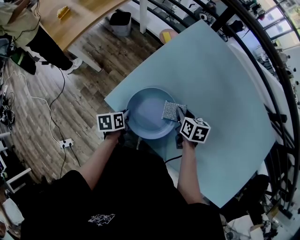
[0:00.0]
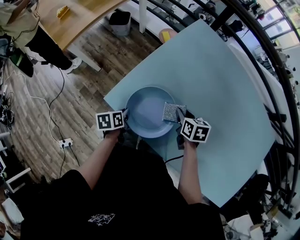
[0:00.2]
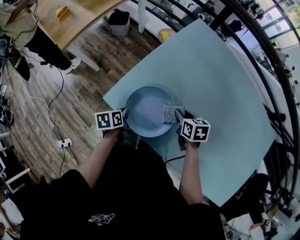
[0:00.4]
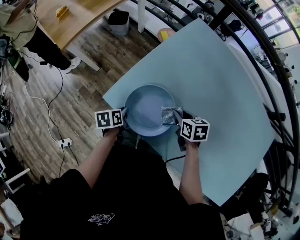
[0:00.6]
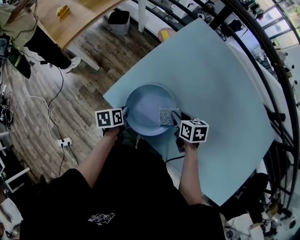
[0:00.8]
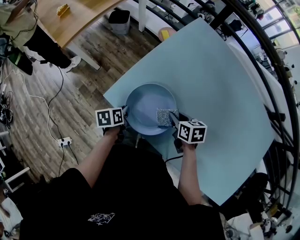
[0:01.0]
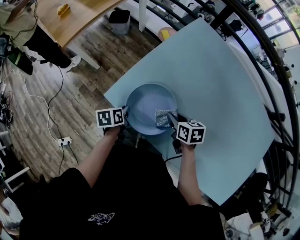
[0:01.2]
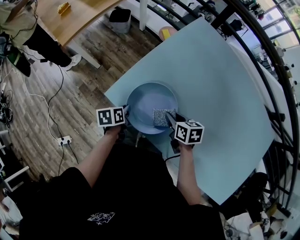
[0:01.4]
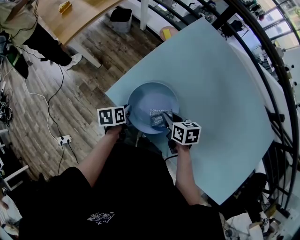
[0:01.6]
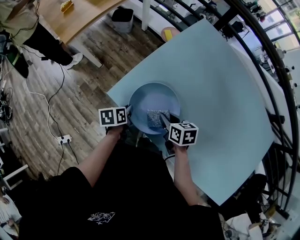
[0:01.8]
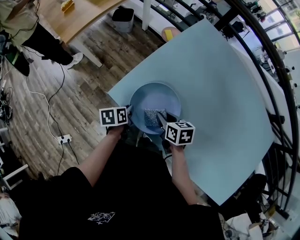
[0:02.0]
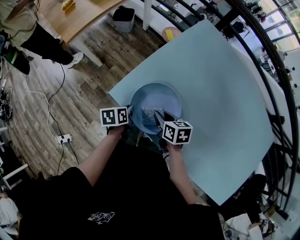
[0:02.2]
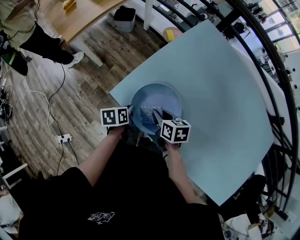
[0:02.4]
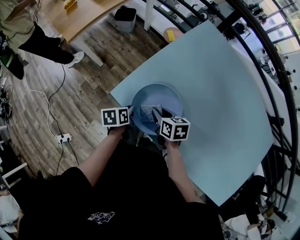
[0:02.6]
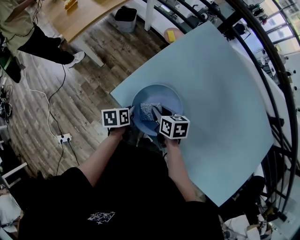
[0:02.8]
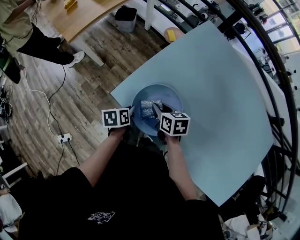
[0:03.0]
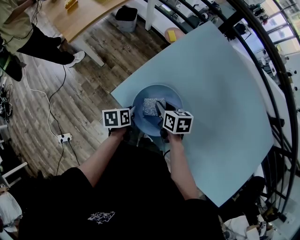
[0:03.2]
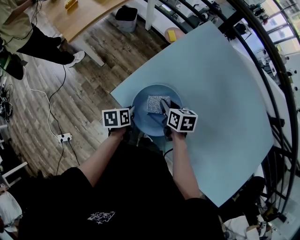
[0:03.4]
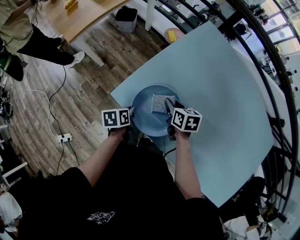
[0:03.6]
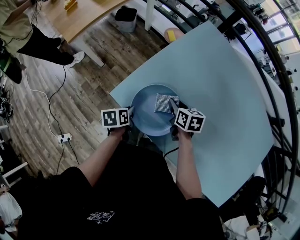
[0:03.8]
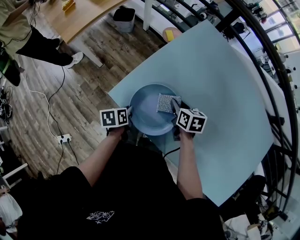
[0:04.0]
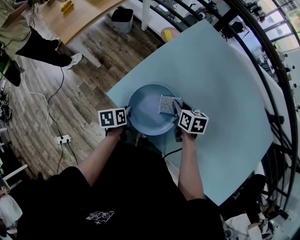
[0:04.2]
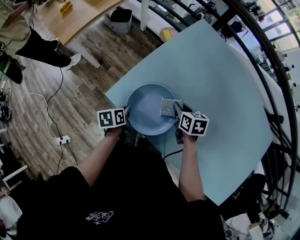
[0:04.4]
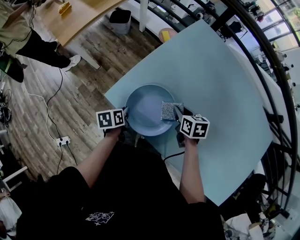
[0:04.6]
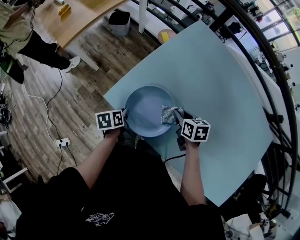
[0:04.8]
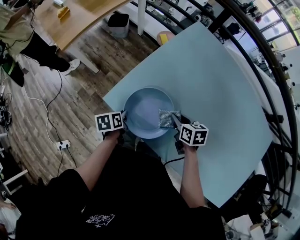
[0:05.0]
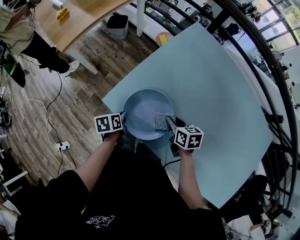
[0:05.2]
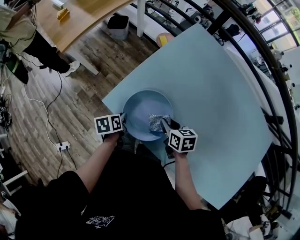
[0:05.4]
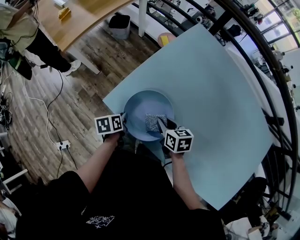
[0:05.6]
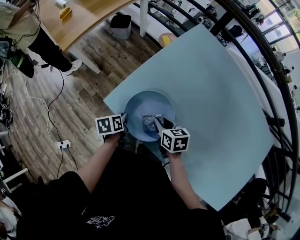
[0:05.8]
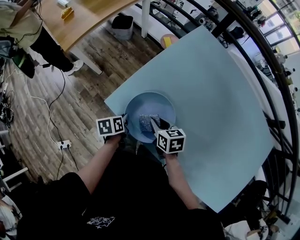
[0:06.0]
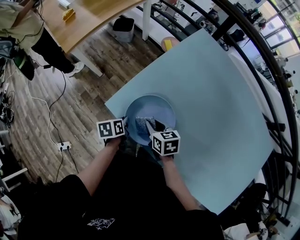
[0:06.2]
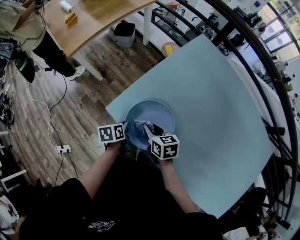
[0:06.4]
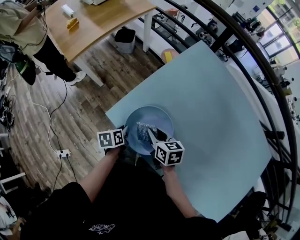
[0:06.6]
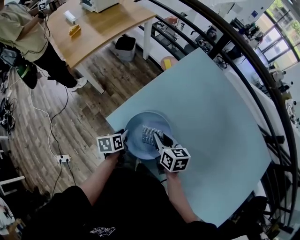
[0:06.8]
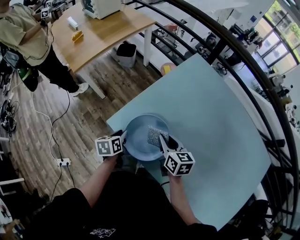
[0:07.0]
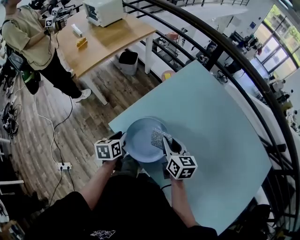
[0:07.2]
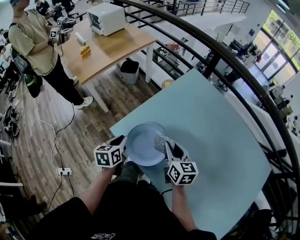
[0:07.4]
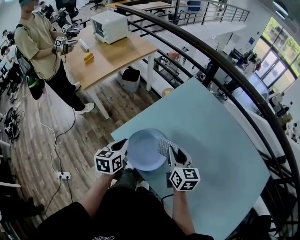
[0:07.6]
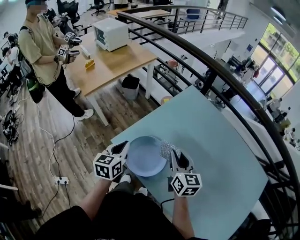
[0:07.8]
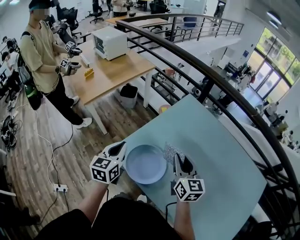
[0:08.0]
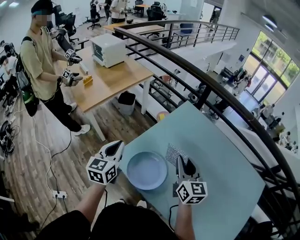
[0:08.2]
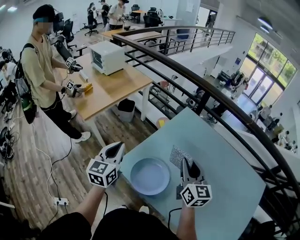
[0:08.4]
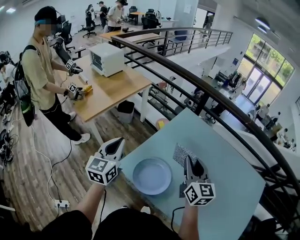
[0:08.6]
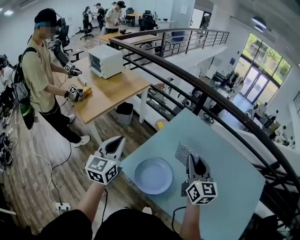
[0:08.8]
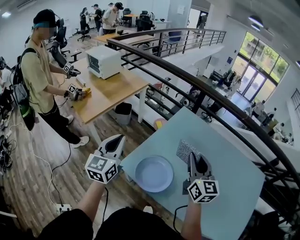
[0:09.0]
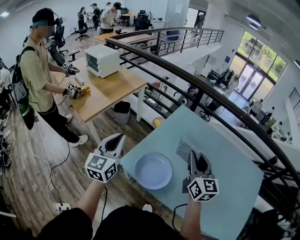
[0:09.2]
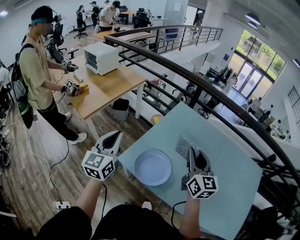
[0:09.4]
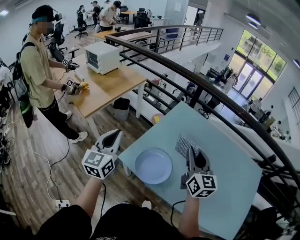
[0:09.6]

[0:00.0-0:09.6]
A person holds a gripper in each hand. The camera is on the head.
0.0 to 1.6 s: The right gripper heads to the left and backward, covering roughly 10 cm.
1.6 to 3.2 s: The right gripper travels to the left and forward by some 10 cm.
3.2 to 4.8 s: The right gripper travels to the right by roughly 15 cm.
4.8 to 6.4 s: The right gripper moves to the left, roughly 15 cm.
6.4 to 8.0 s: The right gripper is displaced upward and to the right by some 30 cm, and rotates roughly 40 degrees. The left gripper goes some 30 cm upward, and points its fingers about 40 degrees further upward.
8.0 to 9.6 s: The right gripper shifts some 15 cm upward and backward. The left gripper travels upward and to the left by roughly 15 cm, and rotates roughly 20 degrees.

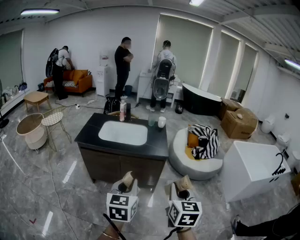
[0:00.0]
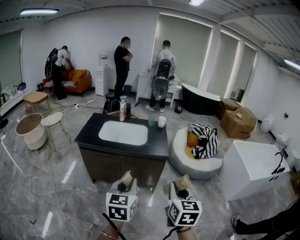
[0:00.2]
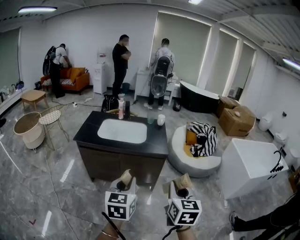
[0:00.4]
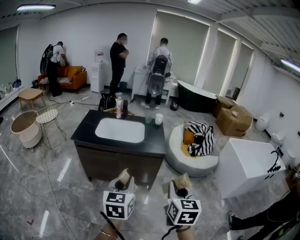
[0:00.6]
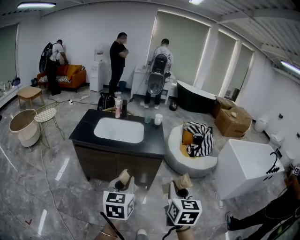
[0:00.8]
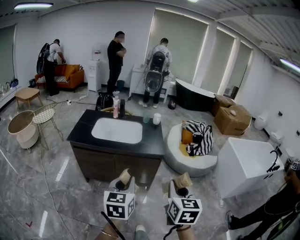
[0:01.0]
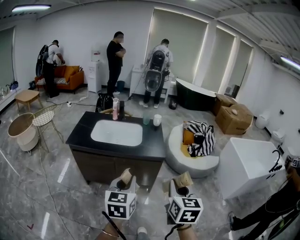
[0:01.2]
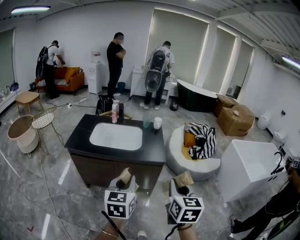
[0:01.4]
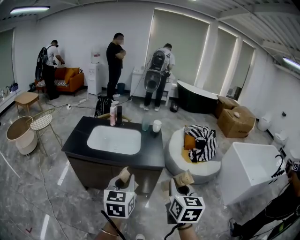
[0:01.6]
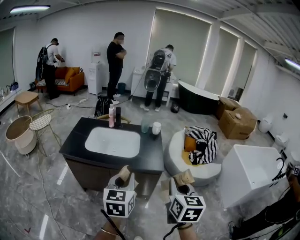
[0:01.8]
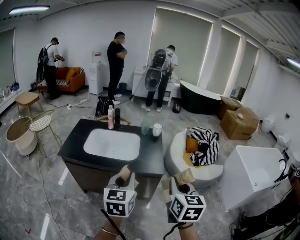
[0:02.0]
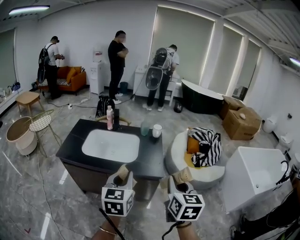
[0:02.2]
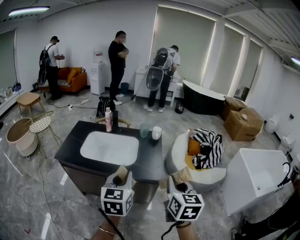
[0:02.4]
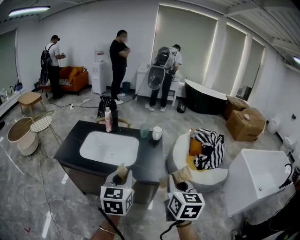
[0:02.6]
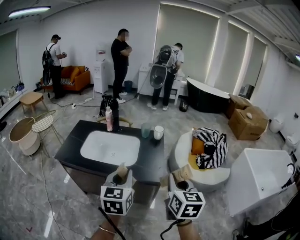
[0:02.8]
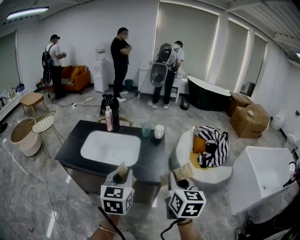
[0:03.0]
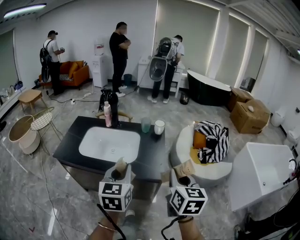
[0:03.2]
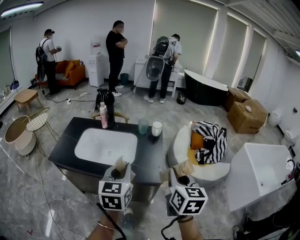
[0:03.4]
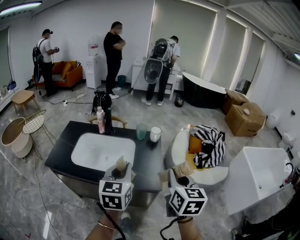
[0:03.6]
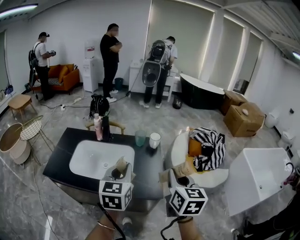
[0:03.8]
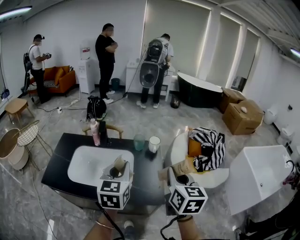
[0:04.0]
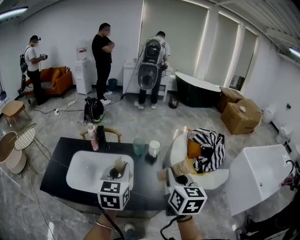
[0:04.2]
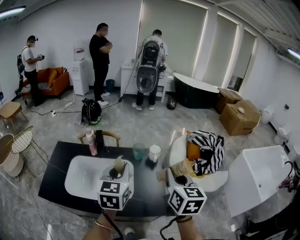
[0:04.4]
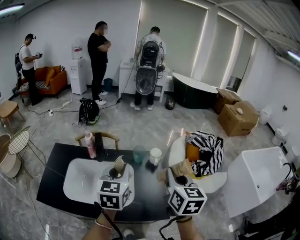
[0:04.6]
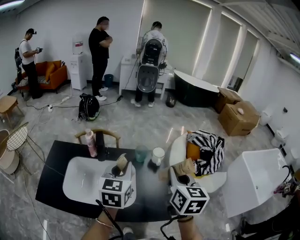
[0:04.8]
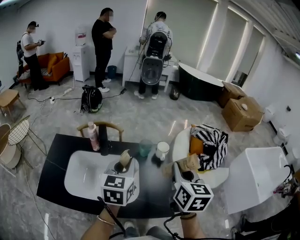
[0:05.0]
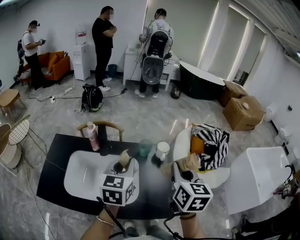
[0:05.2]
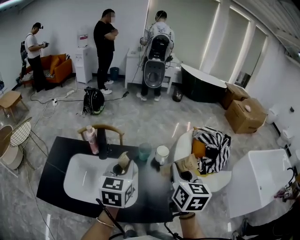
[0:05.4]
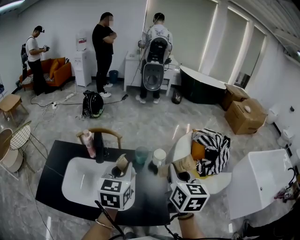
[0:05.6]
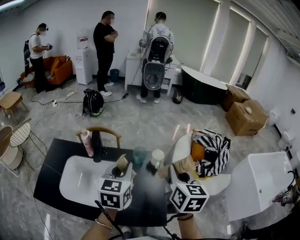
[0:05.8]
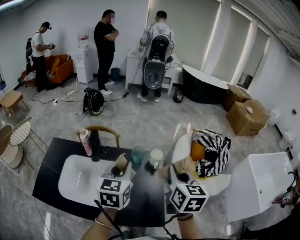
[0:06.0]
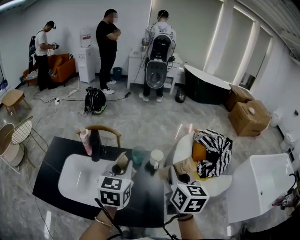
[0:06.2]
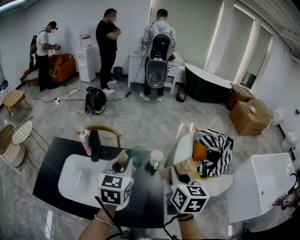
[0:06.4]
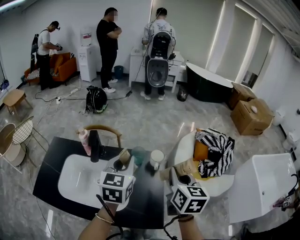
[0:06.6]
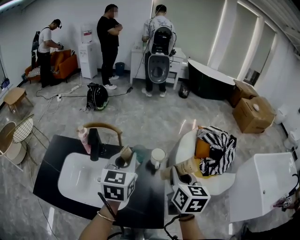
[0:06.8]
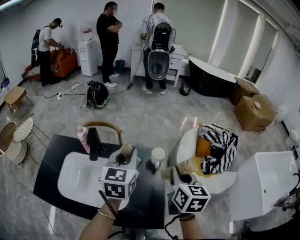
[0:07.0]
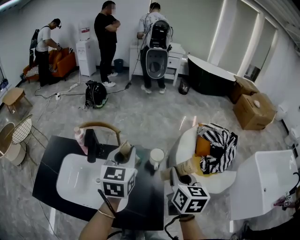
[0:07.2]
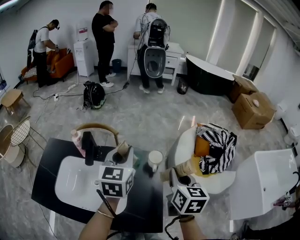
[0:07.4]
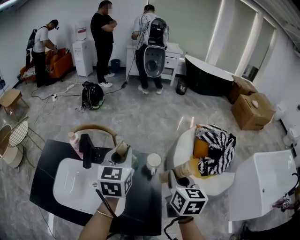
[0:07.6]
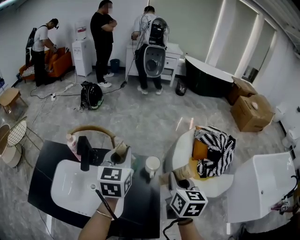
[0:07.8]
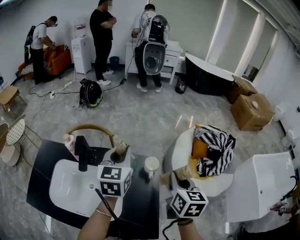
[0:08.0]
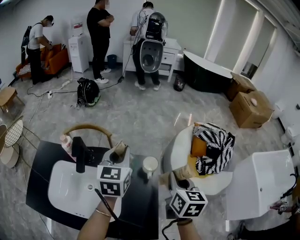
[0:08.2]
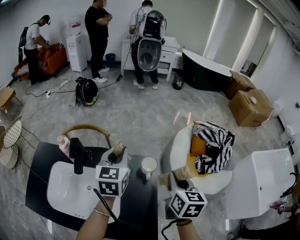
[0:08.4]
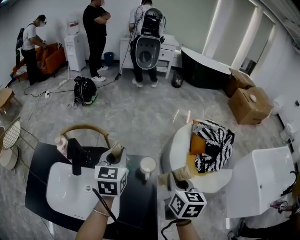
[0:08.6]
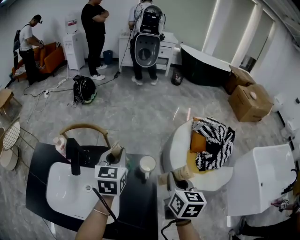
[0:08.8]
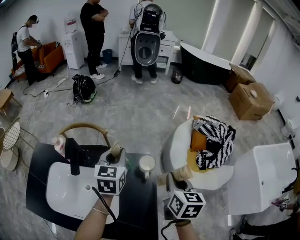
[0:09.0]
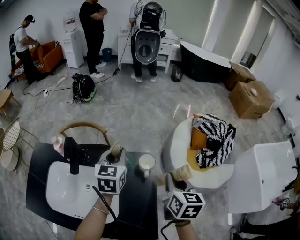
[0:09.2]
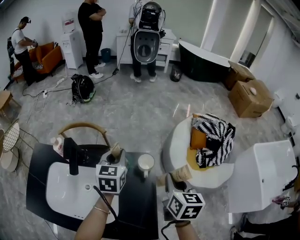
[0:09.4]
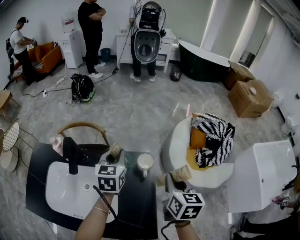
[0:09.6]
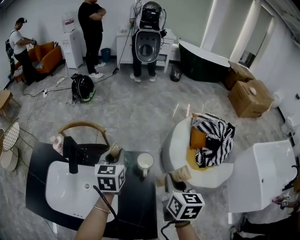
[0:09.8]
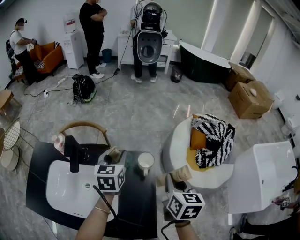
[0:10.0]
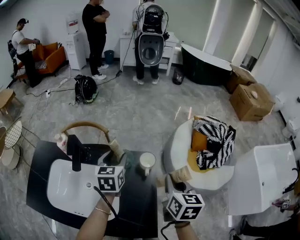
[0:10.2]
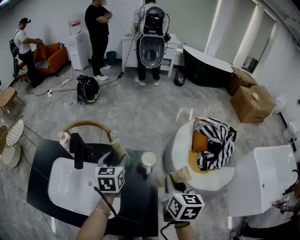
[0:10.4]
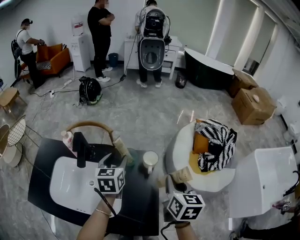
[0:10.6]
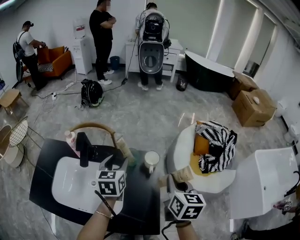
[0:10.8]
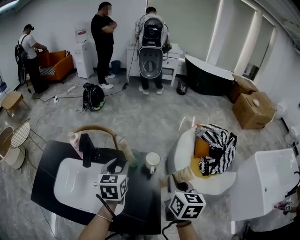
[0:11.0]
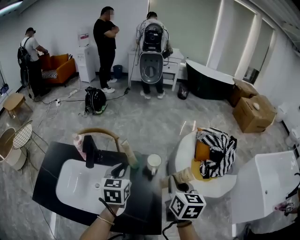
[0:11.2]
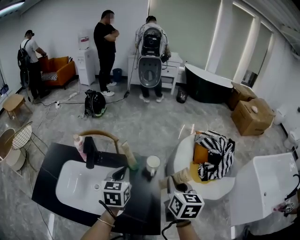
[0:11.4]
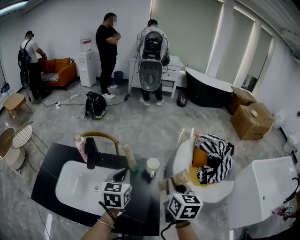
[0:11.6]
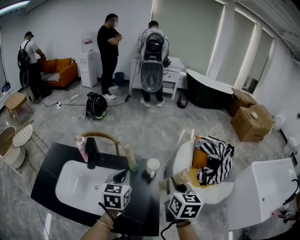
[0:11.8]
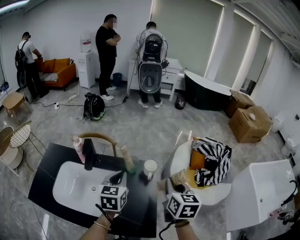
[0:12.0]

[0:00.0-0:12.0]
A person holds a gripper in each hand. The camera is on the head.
0.0 to 1.6 s: Both grippers travel together forward, about 15 cm.
1.6 to 3.0 s: The grippers both shift forward by approximately 15 cm.
3.0 to 4.4 s: Both grippers move forward, some 25 cm.
4.4 to 6.0 s: The two grippers go about 10 cm forward.
6.0 to 7.6 s: The right gripper heads forward and downward, covering some 10 cm; the left gripper travels forward by about 10 cm.
7.6 to 9.0 s: The right gripper changes place by some 5 cm. Meanwhile the left gripper heads downward and forward, covering approximately 10 cm.
9.0 to 10.4 s: The left gripper moves approximately 5 cm, and opens its fingers.
10.4 to 12.0 s: The right gripper shifts by about 5 cm. The left gripper goes approximately 10 cm backward and upward, and closes its fingers.

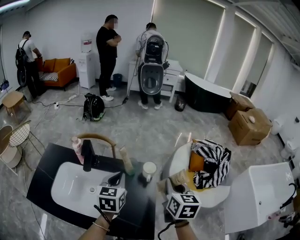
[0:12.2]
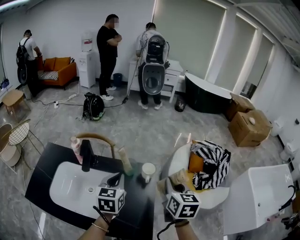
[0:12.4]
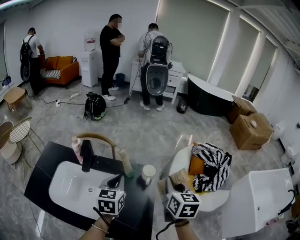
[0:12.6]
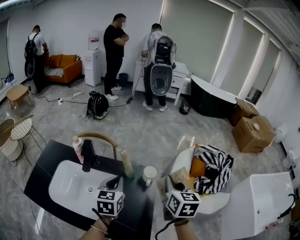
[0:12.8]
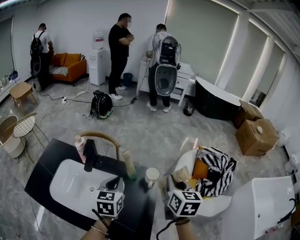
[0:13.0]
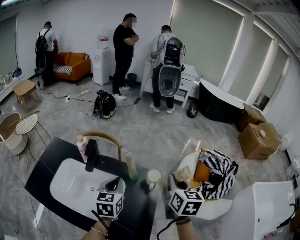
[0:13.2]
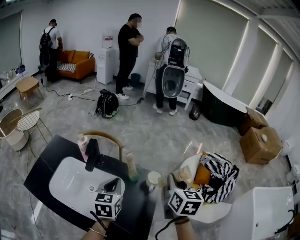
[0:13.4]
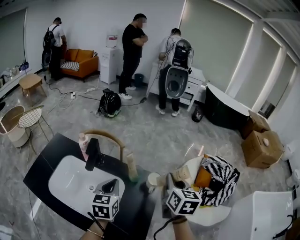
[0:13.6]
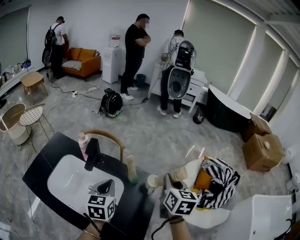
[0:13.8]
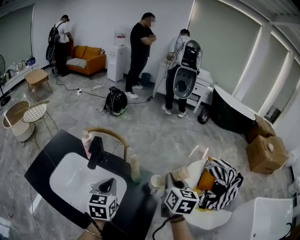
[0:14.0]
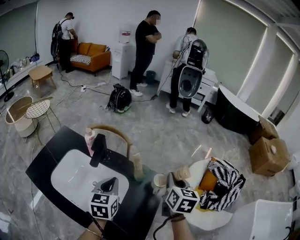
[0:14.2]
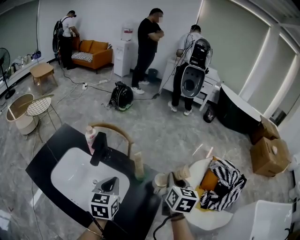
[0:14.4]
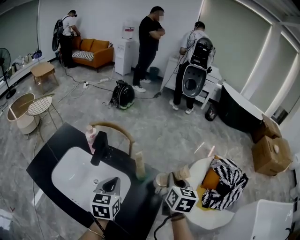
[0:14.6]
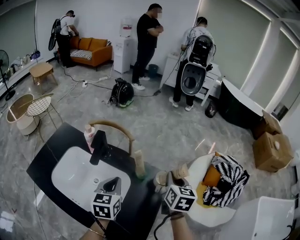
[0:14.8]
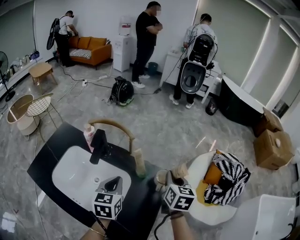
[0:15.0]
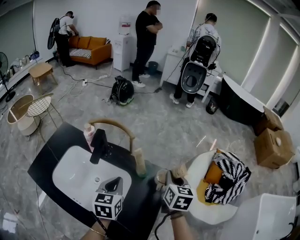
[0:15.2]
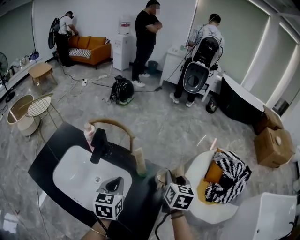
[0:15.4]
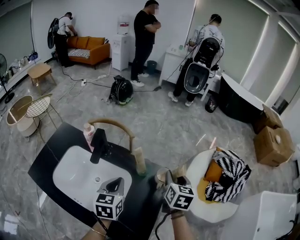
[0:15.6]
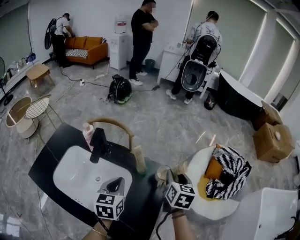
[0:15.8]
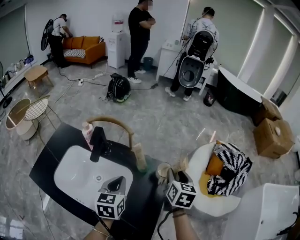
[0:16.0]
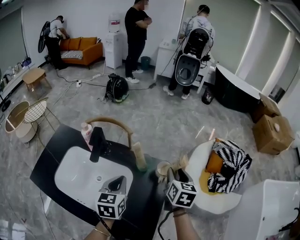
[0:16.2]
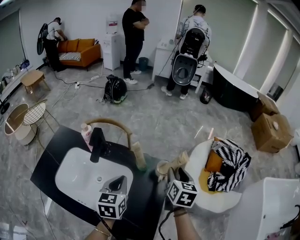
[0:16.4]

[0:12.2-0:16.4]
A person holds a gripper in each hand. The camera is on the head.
12.2 to 13.6 s: The left gripper moves some 5 cm, while the right gripper moves forward, roughly 10 cm.
13.6 to 15.0 s: The right gripper shifts approximately 10 cm downward.
15.0 to 16.4 s: The right gripper opens up.
